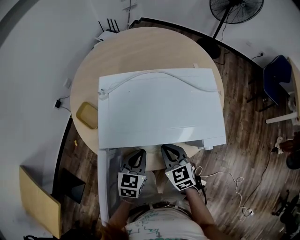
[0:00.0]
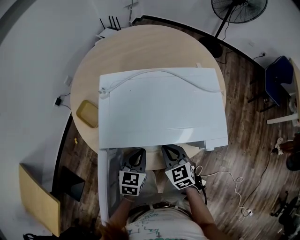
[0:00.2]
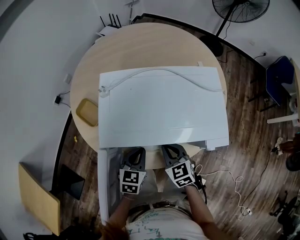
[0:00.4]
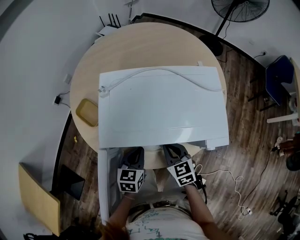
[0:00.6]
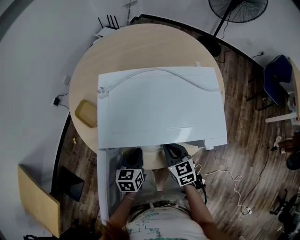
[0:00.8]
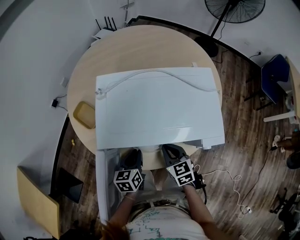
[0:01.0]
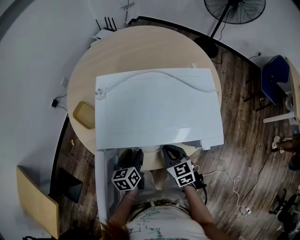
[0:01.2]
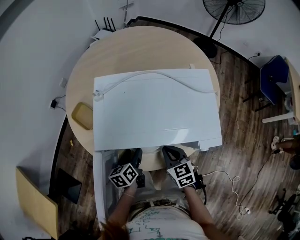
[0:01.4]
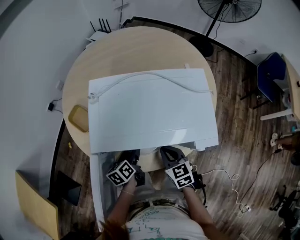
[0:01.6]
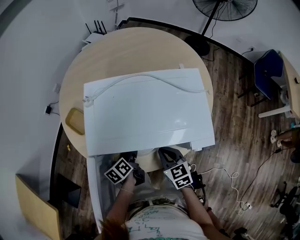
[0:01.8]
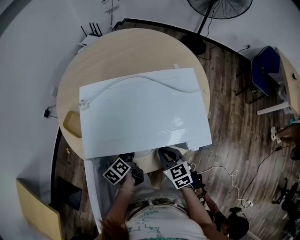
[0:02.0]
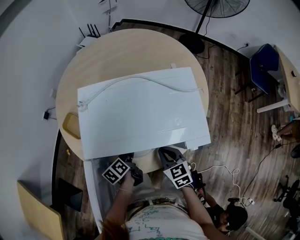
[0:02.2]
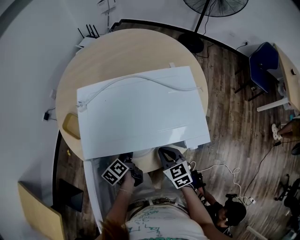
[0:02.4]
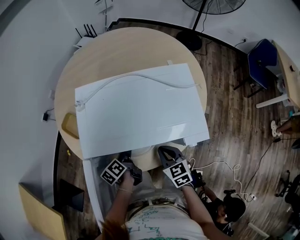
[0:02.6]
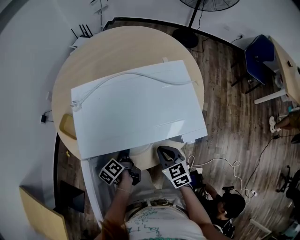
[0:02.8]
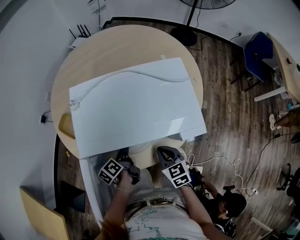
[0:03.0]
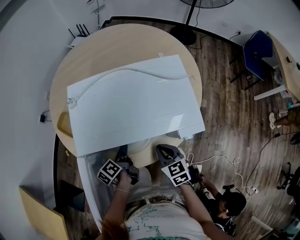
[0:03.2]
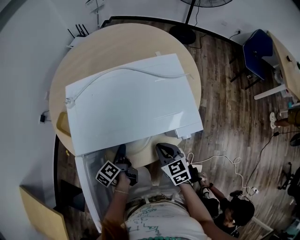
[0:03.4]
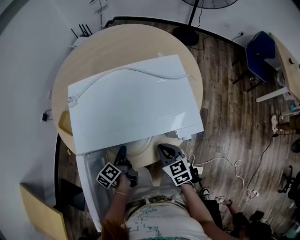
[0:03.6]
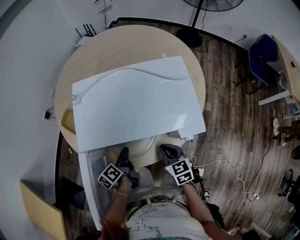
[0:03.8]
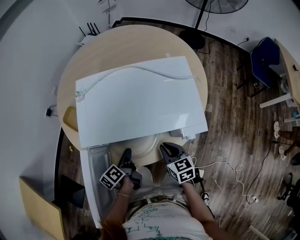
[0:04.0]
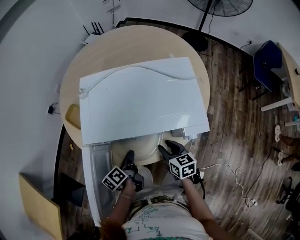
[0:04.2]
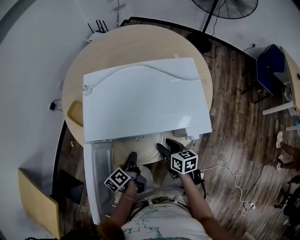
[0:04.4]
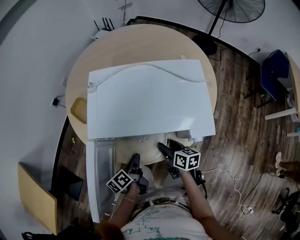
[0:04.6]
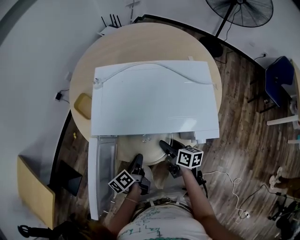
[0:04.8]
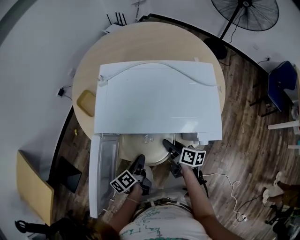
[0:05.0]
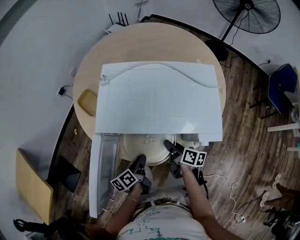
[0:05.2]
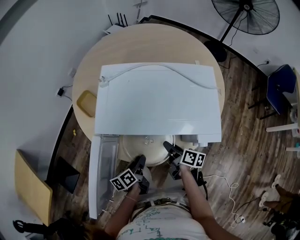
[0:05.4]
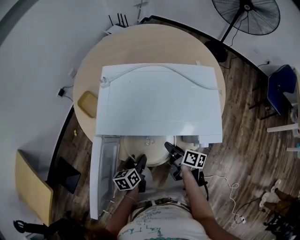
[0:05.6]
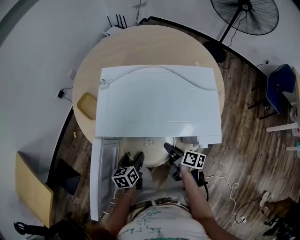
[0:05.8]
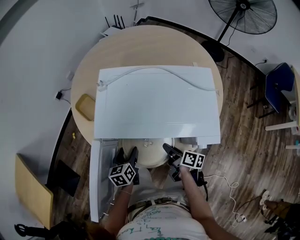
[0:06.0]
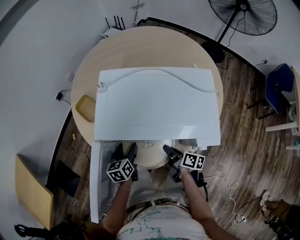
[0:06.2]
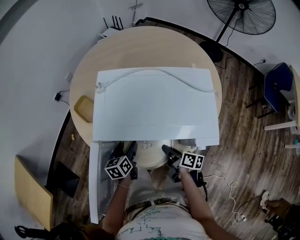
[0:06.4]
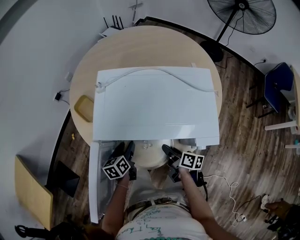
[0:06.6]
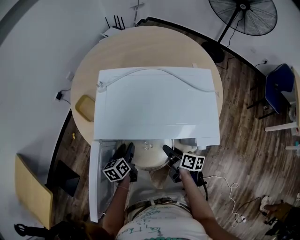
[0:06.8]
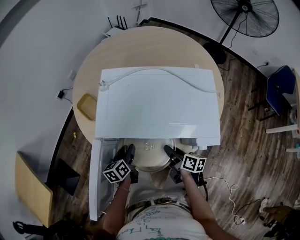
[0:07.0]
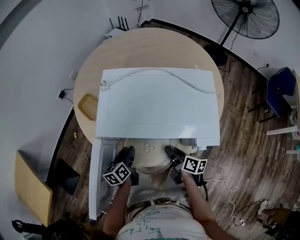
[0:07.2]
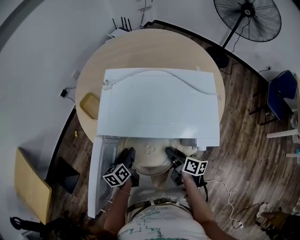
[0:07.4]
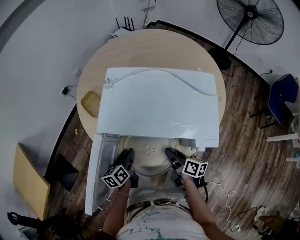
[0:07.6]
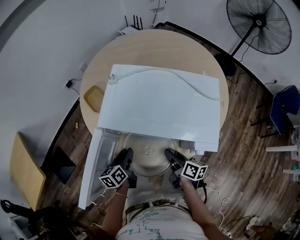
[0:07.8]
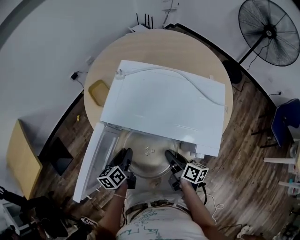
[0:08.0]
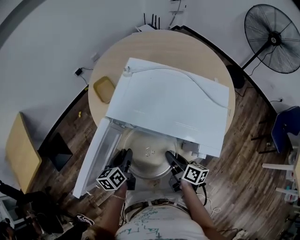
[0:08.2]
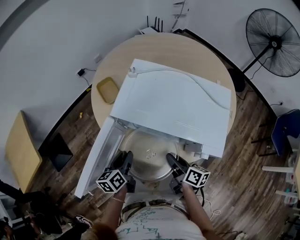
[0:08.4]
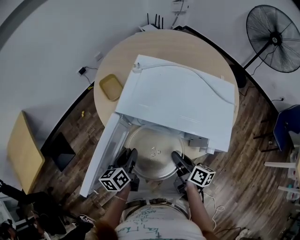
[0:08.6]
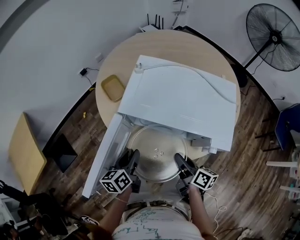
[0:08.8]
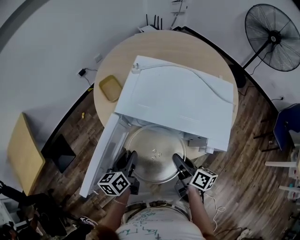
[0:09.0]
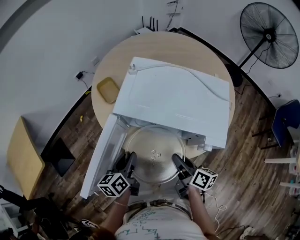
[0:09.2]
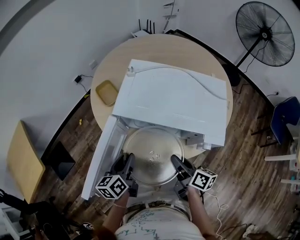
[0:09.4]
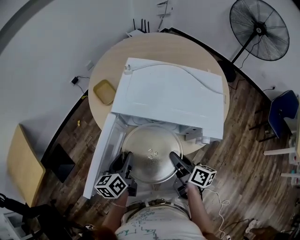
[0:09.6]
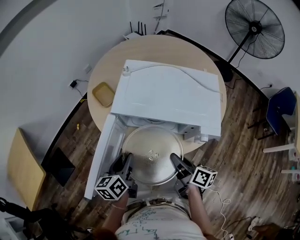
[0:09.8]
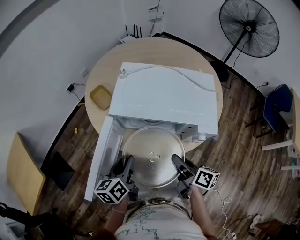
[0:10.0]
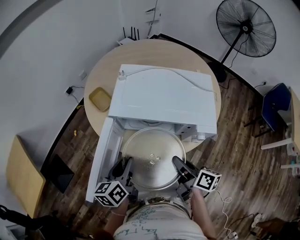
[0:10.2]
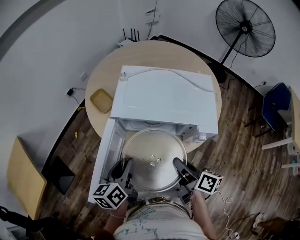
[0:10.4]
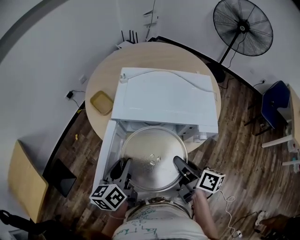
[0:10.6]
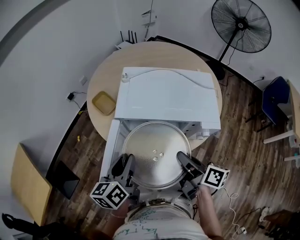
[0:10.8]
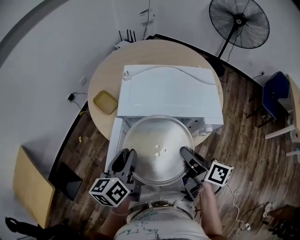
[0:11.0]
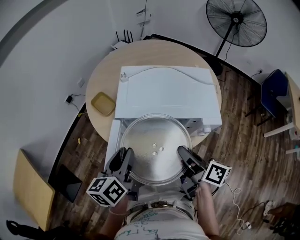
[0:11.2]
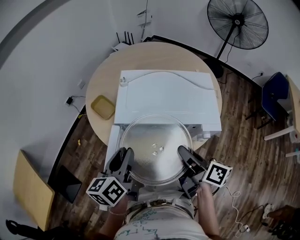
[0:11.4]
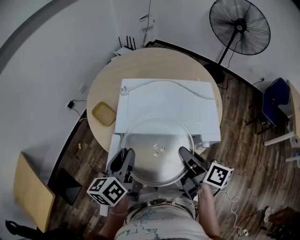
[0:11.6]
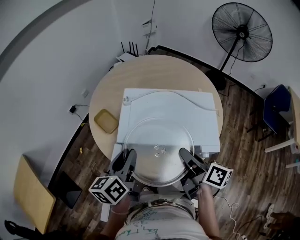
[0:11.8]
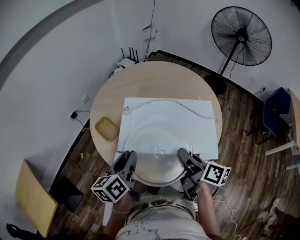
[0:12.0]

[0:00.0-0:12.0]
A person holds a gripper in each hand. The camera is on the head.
0.0 to 1.6 s: The left gripper heads downward, covering approximately 10 cm, rotates around the line of its fingers by some 50 degrees, counterclockwise from behind, and opens.
1.6 to 3.0 s: The left gripper closes its fingers.
3.0 to 4.4 s: The right gripper rotates approximately 30 degrees, and opens, while the left gripper shifts roughly 10 cm backward.
4.4 to 6.0 s: The left gripper ends up approximately 5 cm from where it was, changes its angle by roughly 40 degrees, and opens up. The right gripper turns by some 30 degrees, and closes its fingers.
6.0 to 7.6 s: The left gripper closes up.
7.6 to 9.0 s: The left gripper goes about 10 cm upward and backward, while the right gripper moves upward, some 5 cm.
9.0 to 10.4 s: The right gripper shifts about 10 cm upward and backward, while the left gripper moves upward, some 10 cm.
10.4 to 12.0 s: Both grippers travel together forward and upward, about 15 cm.

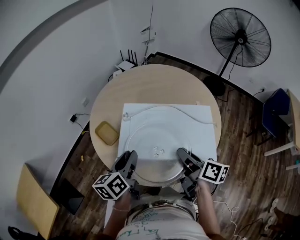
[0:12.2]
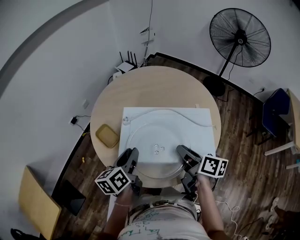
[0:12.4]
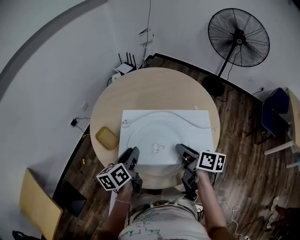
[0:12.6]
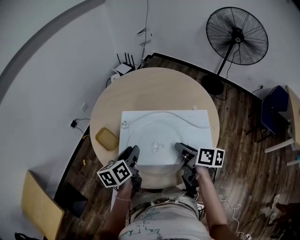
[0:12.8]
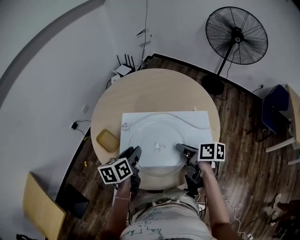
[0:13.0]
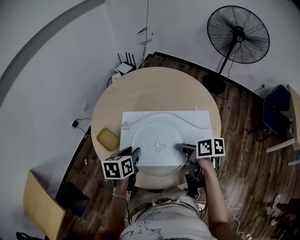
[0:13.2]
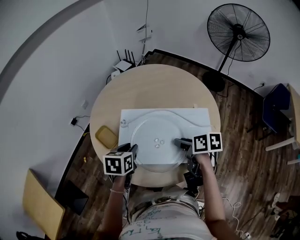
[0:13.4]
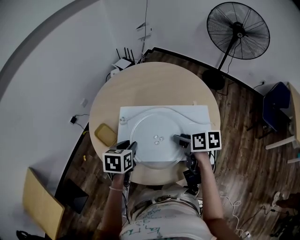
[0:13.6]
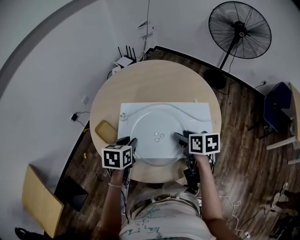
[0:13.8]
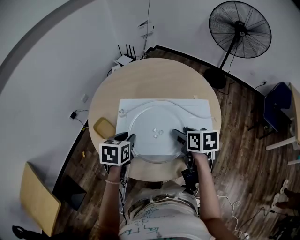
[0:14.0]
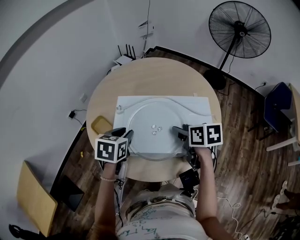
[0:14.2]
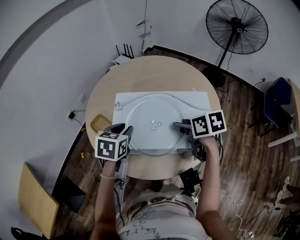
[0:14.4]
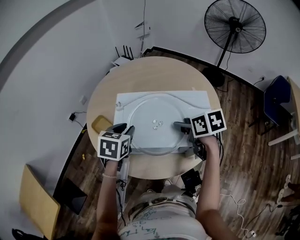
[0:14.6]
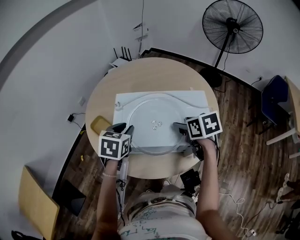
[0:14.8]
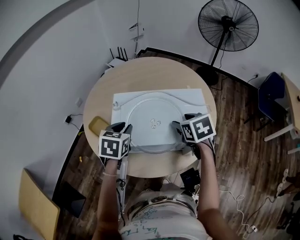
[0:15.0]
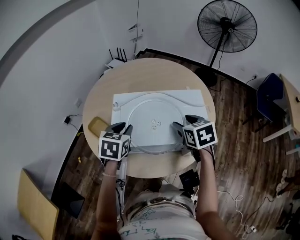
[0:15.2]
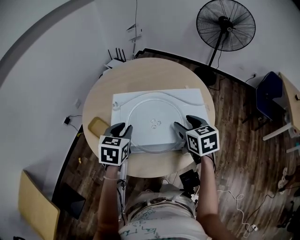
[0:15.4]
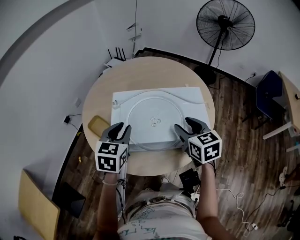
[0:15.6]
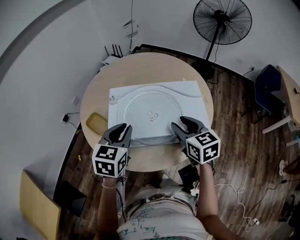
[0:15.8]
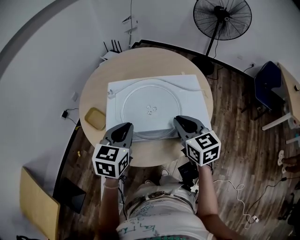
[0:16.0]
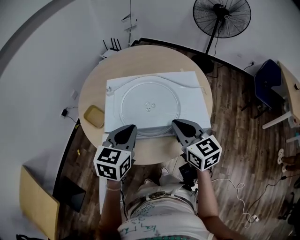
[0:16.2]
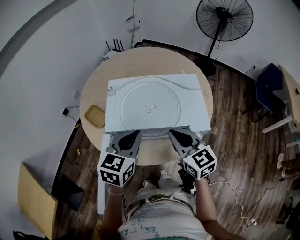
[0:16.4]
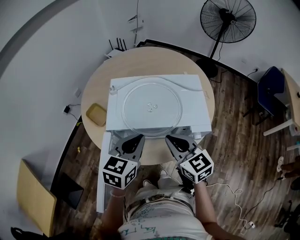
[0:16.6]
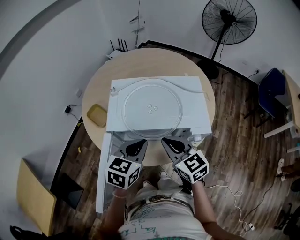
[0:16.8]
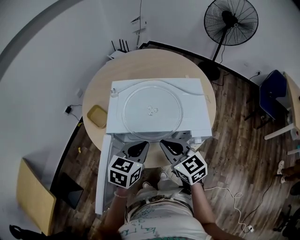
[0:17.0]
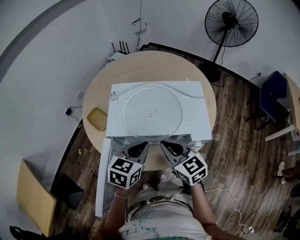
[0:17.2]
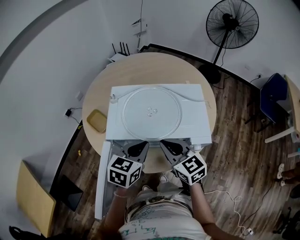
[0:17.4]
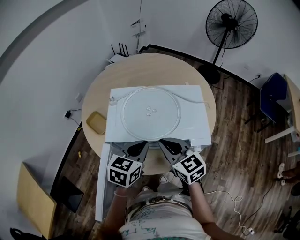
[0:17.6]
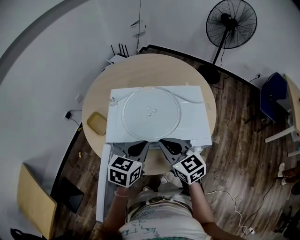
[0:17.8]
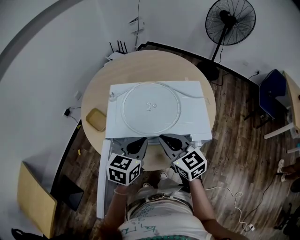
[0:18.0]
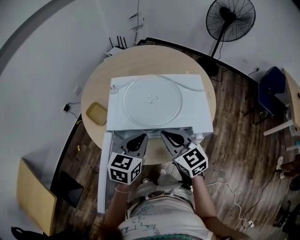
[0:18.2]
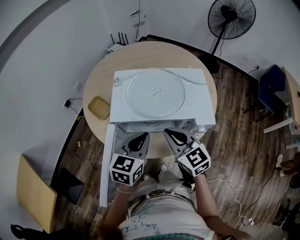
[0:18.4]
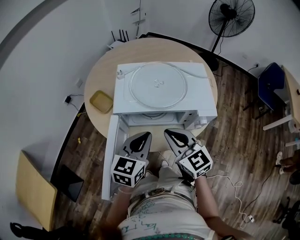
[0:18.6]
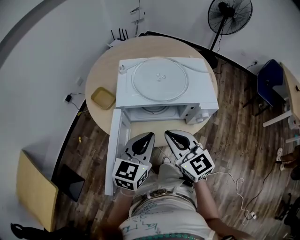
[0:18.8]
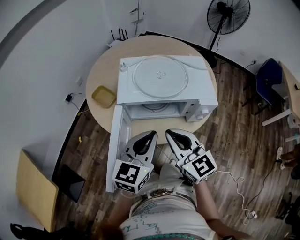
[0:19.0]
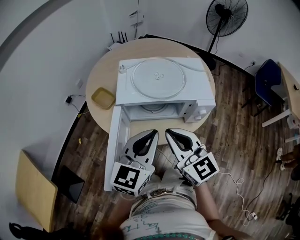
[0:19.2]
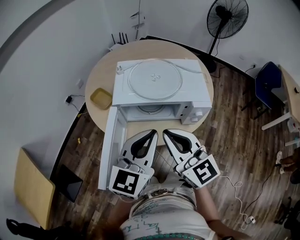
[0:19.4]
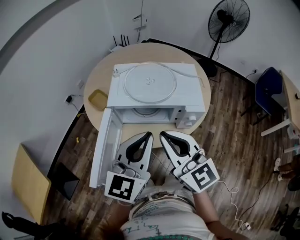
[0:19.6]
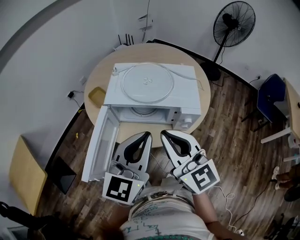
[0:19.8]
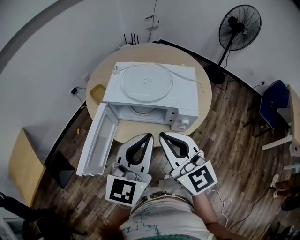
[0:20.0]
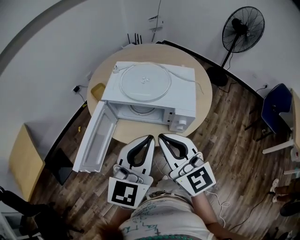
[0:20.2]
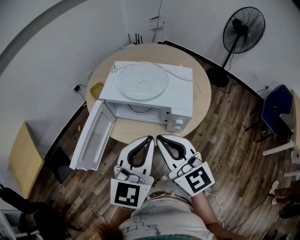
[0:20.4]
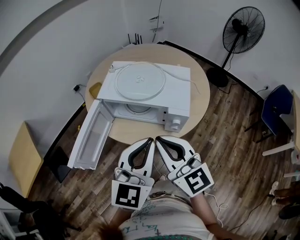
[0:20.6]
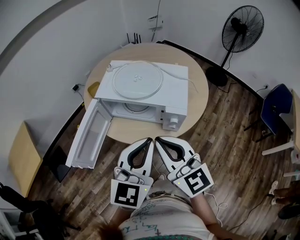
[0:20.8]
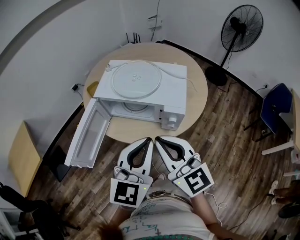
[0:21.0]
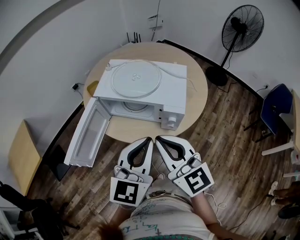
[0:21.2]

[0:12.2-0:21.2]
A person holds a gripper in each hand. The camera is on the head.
12.2 to 13.8 s: The grippers both shift forward by about 5 cm. The right gripper swivels about 30 degrees, and opens its fingers. Meanwhile the left gripper rotates about 40 degrees.
13.8 to 15.2 s: The right gripper rotates roughly 30 degrees.
15.2 to 16.6 s: The right gripper heads backward, covering approximately 15 cm, changes its angle by about 30 degrees, and closes its fingers; the left gripper travels backward and to the right by roughly 15 cm.
16.6 to 18.2 s: There are only small adjustments of the grippers.
18.2 to 19.8 s: The left gripper travels upward and backward by approximately 20 cm, and rotates roughly 30 degrees; the right gripper goes about 20 cm backward and upward.
19.8 to 21.2 s: The right gripper goes roughly 10 cm to the right, while the left gripper shifts about 10 cm to the right and backward.

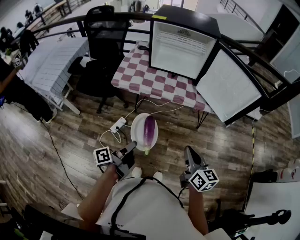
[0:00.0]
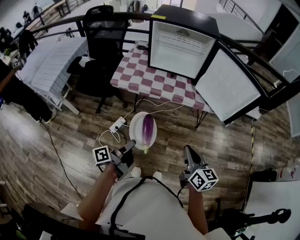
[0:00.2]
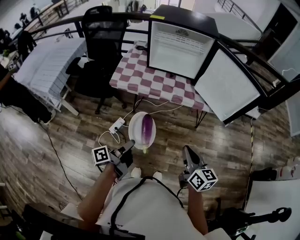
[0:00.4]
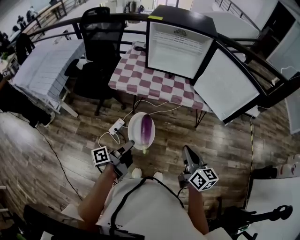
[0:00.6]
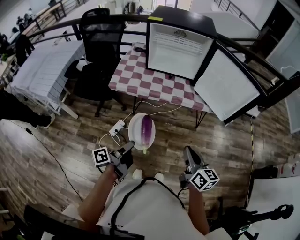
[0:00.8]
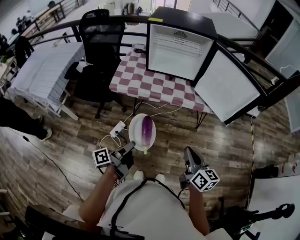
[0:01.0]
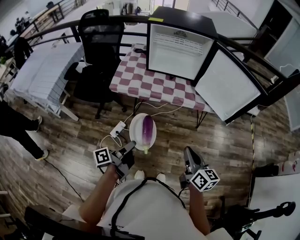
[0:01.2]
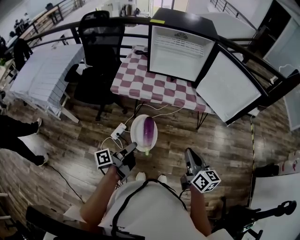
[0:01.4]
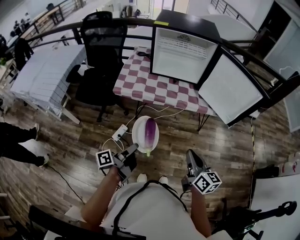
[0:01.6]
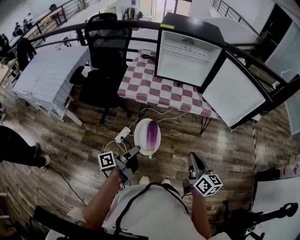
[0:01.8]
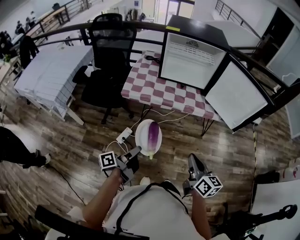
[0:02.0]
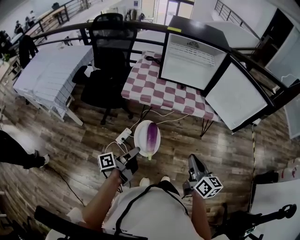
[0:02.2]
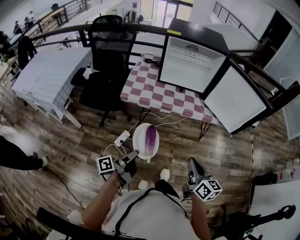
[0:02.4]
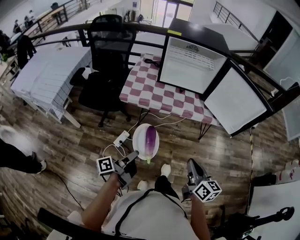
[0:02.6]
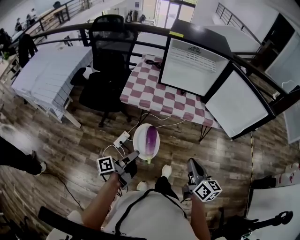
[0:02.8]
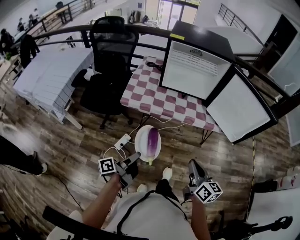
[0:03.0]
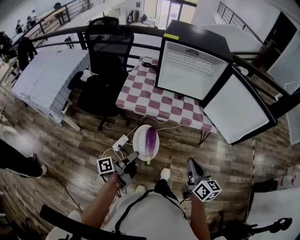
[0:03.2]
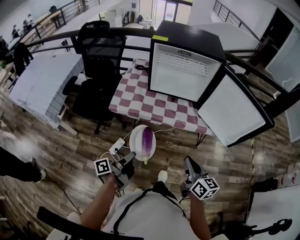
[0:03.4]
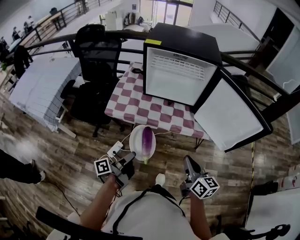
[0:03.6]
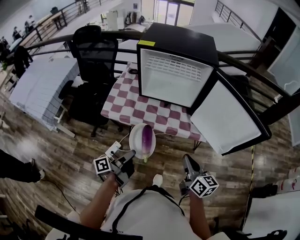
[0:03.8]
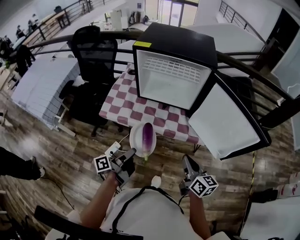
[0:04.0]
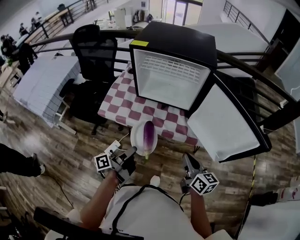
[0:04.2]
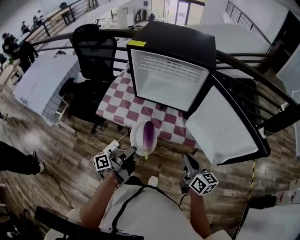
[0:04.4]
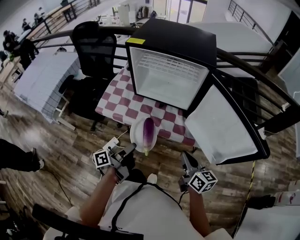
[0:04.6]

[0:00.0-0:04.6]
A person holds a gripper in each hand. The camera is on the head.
0.0 to 1.6 s: The right gripper shifts by approximately 5 cm.
1.6 to 3.0 s: The right gripper moves about 5 cm.
3.0 to 4.6 s: The right gripper ends up some 25 cm from where it was.
